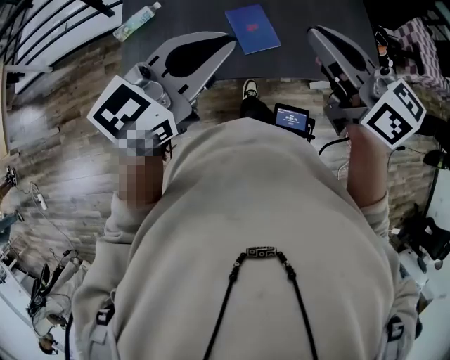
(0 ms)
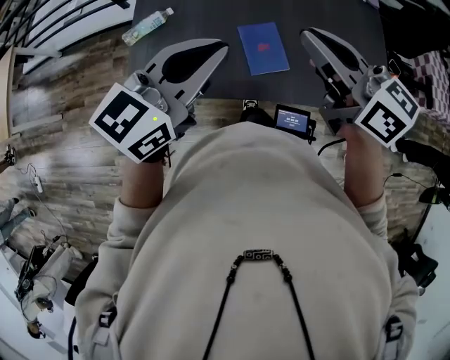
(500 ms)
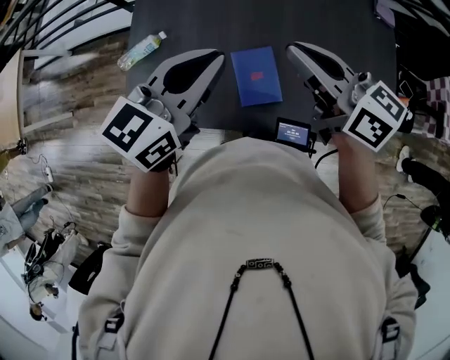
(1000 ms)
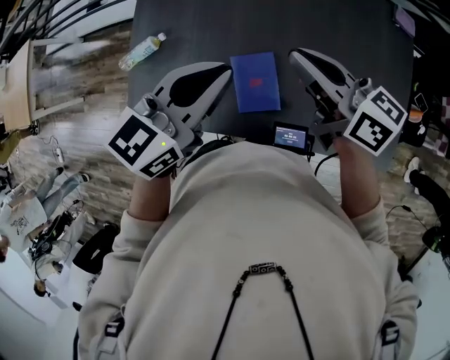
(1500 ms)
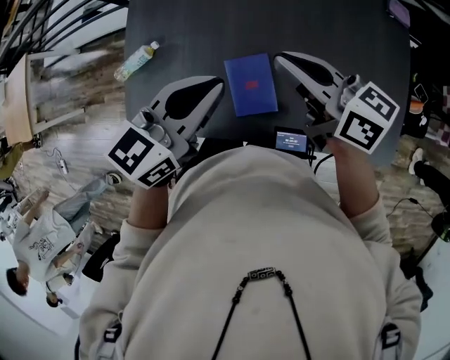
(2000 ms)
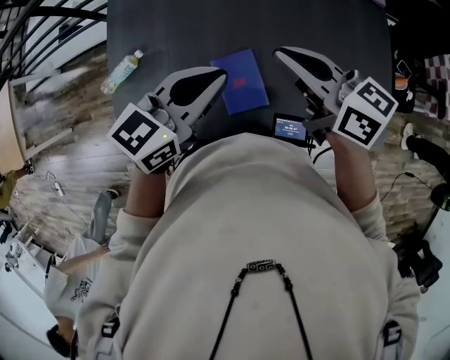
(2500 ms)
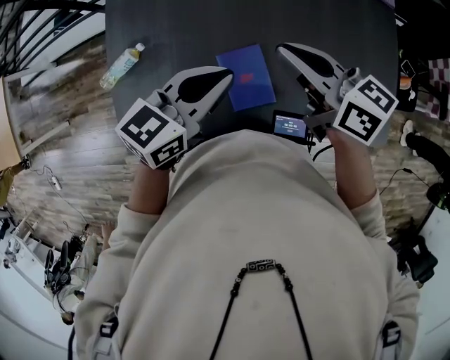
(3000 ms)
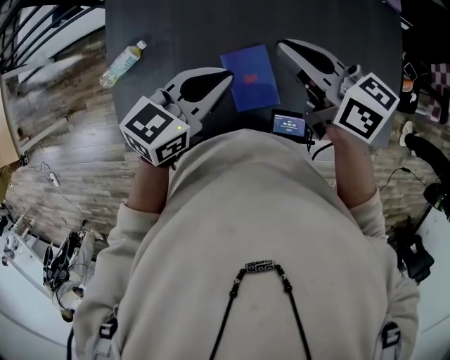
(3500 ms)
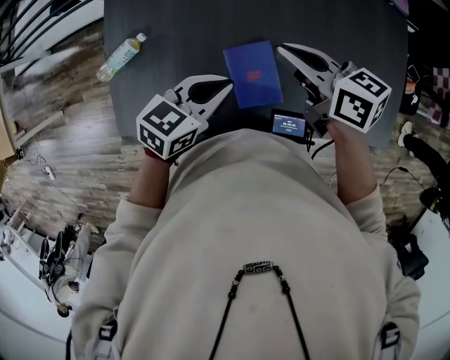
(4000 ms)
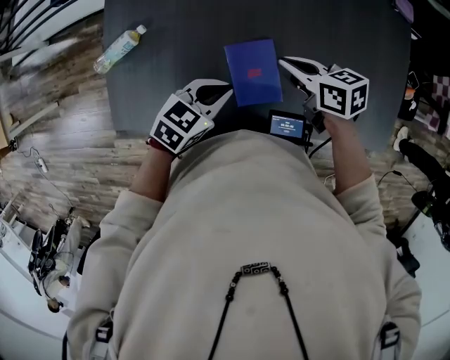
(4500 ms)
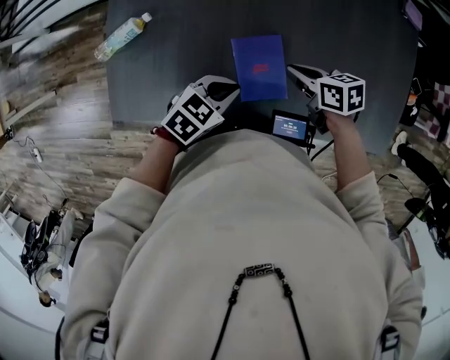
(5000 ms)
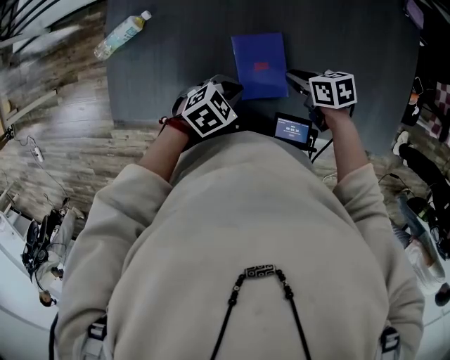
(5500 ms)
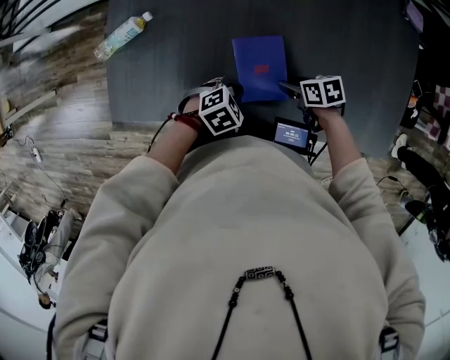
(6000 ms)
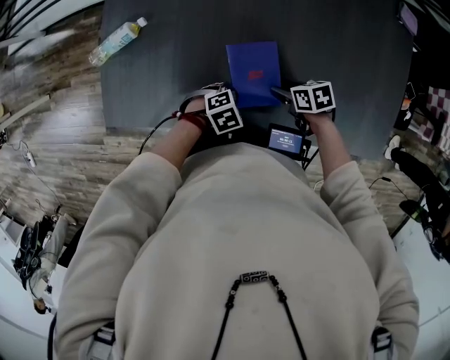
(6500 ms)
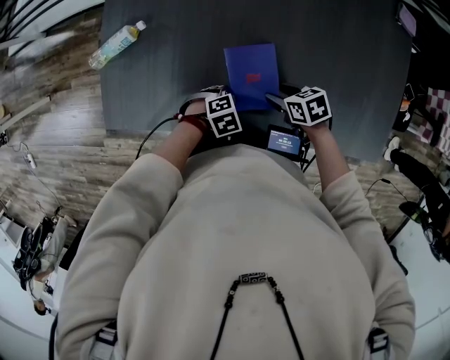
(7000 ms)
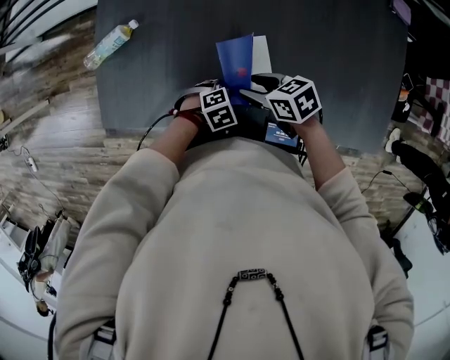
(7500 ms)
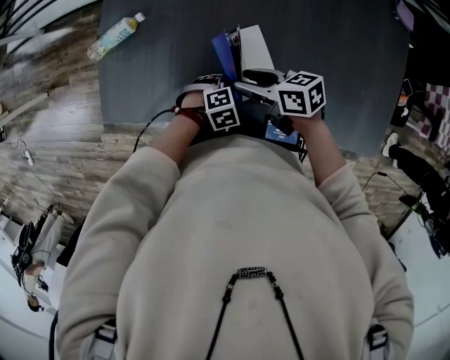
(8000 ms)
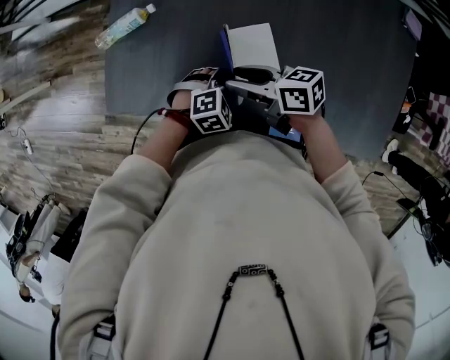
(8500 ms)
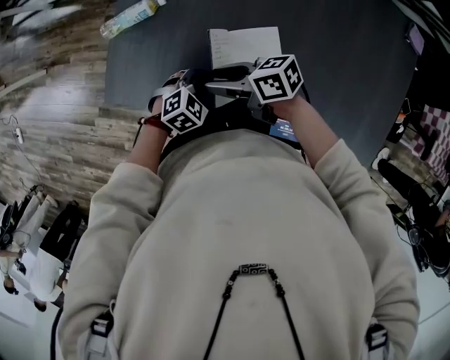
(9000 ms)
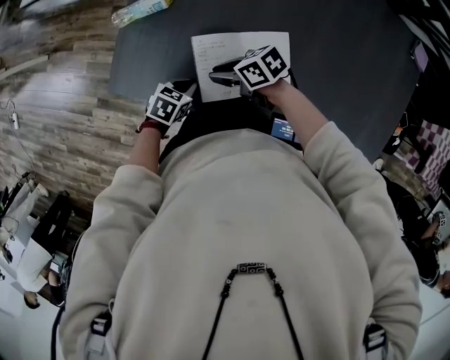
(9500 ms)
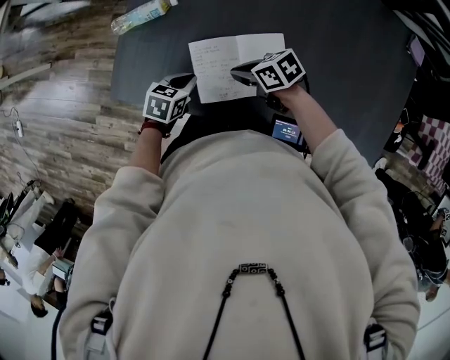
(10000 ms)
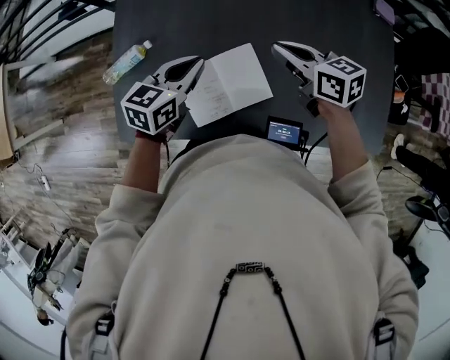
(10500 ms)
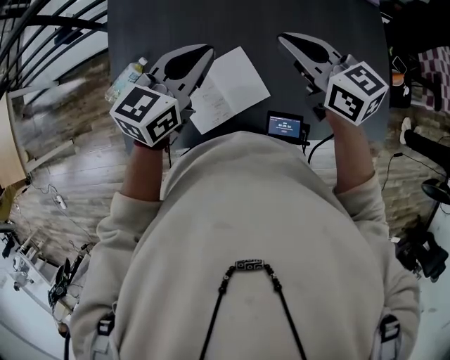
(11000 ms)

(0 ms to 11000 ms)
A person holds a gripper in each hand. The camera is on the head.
0 ms - 2000 ms: The left gripper travels forward, to the right and downward by about 25 cm, and changes its angle by roughly 20 degrees. The right gripper moves forward and downward, roughly 25 cm, and rotates about 30 degrees.
2000 ms - 3500 ms: The left gripper shifts some 10 cm downward.
3500 ms - 5500 ms: The grippers both shift downward by roughly 25 cm. The right gripper tilts its fingers some 30 degrees downward. Meanwhile the left gripper angles its fingers downward, by about 30 degrees.
5500 ms - 7500 ms: The left gripper goes some 10 cm downward, and turns by roughly 20 degrees; the right gripper ends up roughly 10 cm from where it was, and opens up.
7500 ms - 9000 ms: The left gripper shifts by about 15 cm, and changes its angle by approximately 30 degrees, while the right gripper changes place by roughly 15 cm, and turns by some 30 degrees.
9000 ms - 11000 ms: The right gripper changes place by some 30 cm, turns by roughly 60 degrees, and closes, while the left gripper goes roughly 30 cm upward, and tips its fingers upward by about 40 degrees.

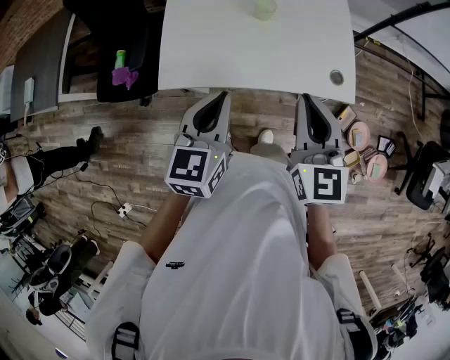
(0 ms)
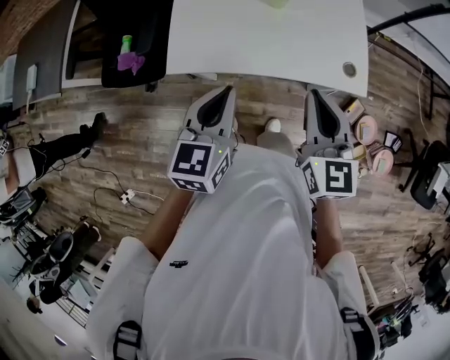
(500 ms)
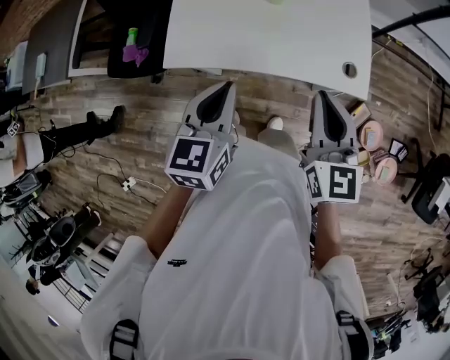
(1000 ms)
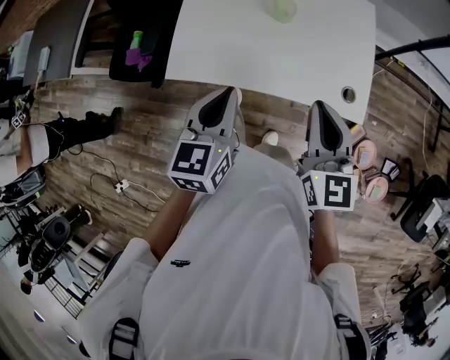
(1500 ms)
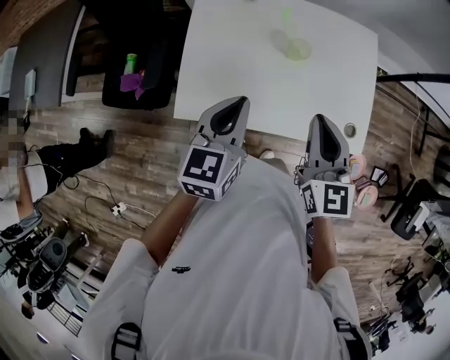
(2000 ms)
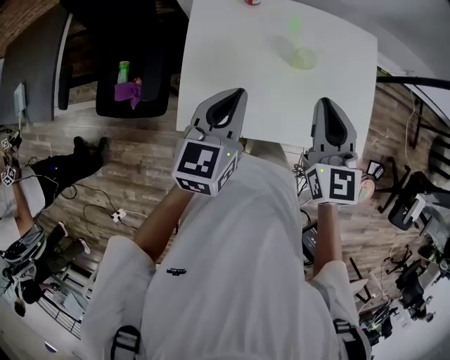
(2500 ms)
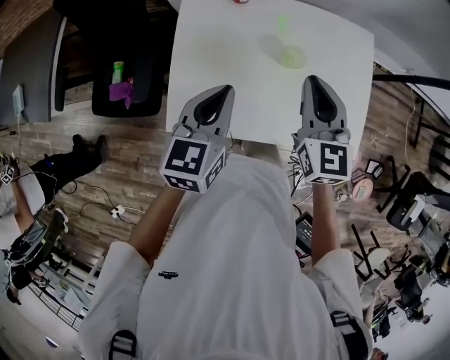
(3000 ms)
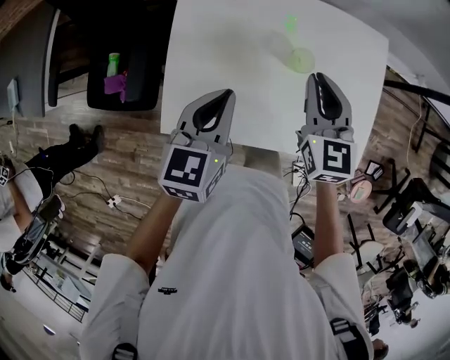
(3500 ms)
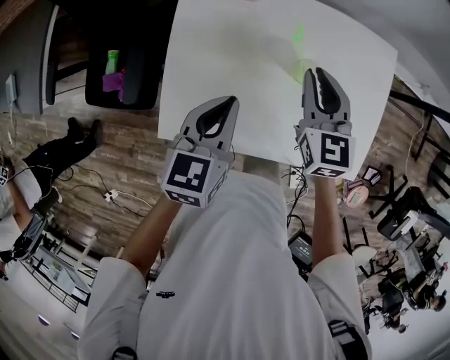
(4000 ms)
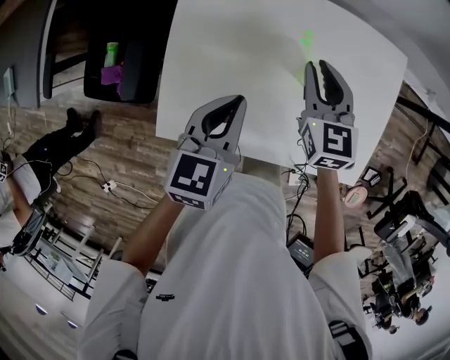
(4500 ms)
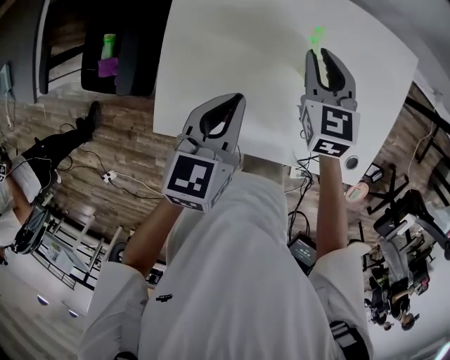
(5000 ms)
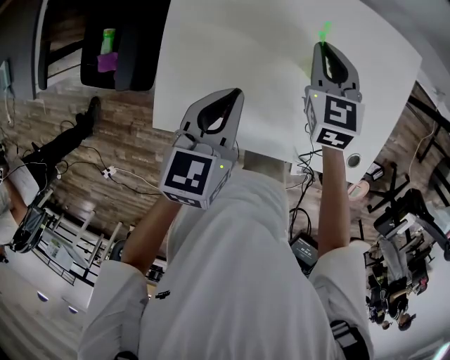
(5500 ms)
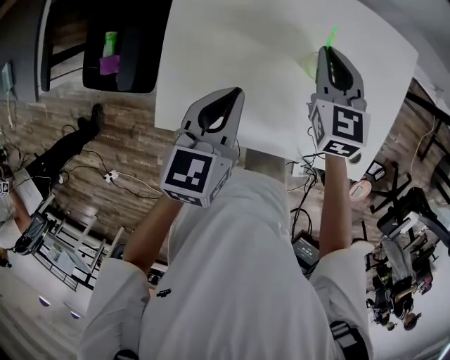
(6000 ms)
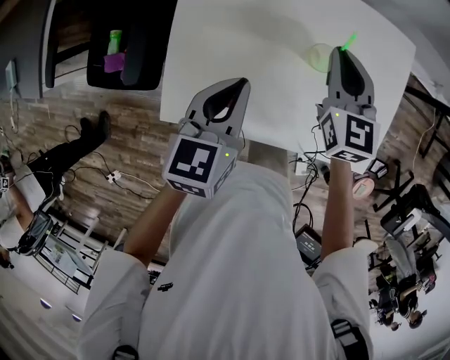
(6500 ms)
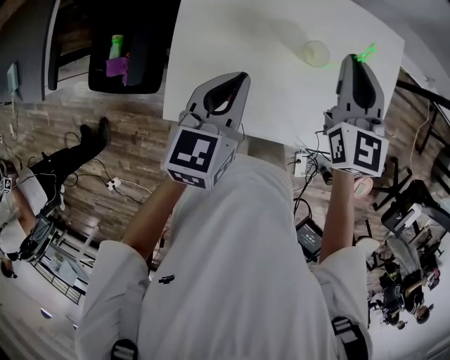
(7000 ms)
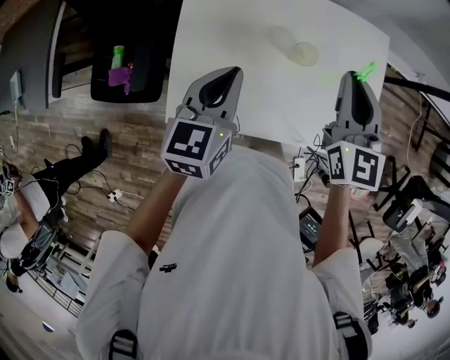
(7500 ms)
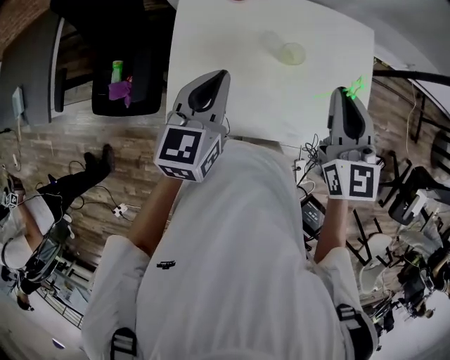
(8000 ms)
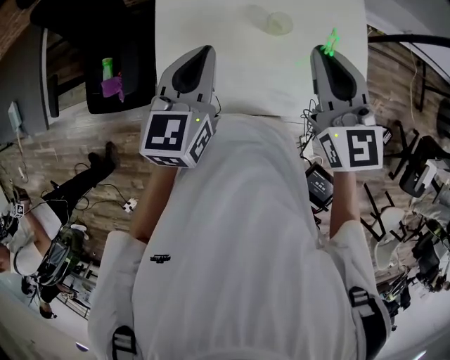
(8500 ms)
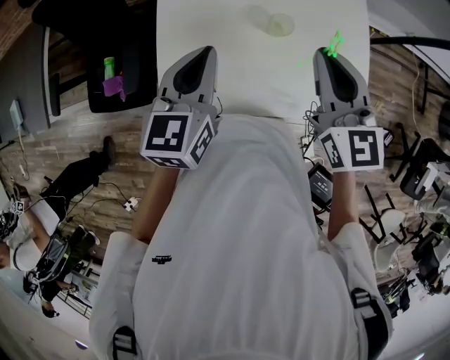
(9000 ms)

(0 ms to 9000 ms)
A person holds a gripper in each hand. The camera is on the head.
0 ms - 2000 ms: The grippers both shift forward by some 15 cm.
2000 ms - 4500 ms: The left gripper heads forward and downward, covering some 15 cm, while the right gripper goes about 30 cm forward and downward.
4500 ms - 7000 ms: The right gripper travels upward by some 10 cm.
7000 ms - 9000 ms: The left gripper travels upward by about 5 cm. Meanwhile the right gripper heads backward and upward, covering approximately 15 cm.

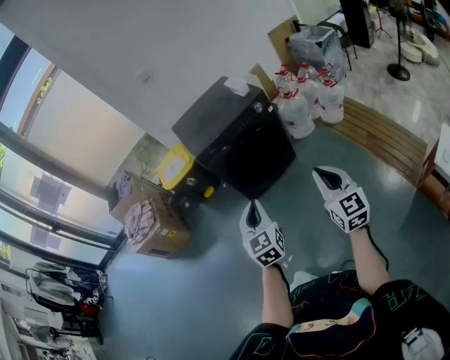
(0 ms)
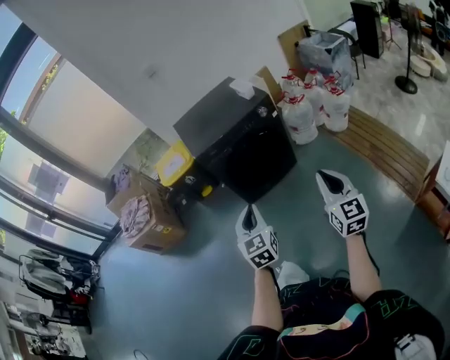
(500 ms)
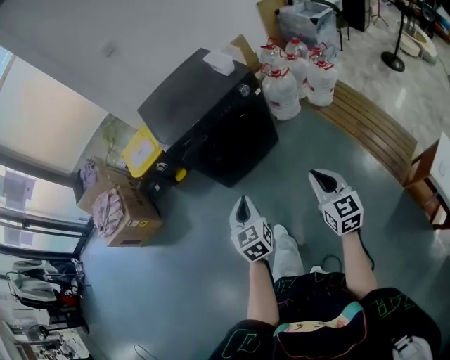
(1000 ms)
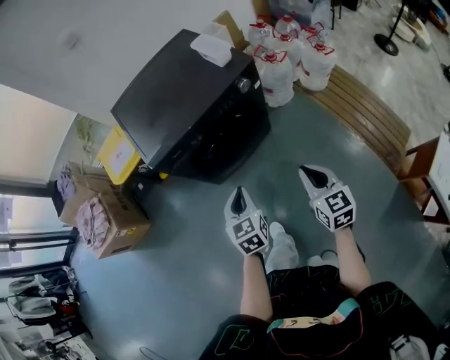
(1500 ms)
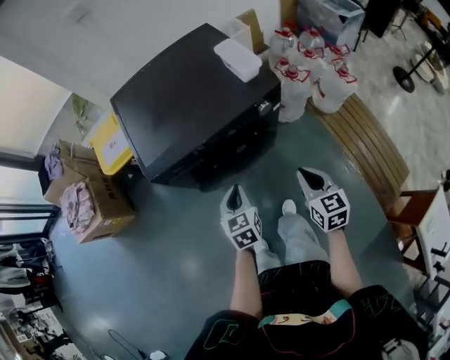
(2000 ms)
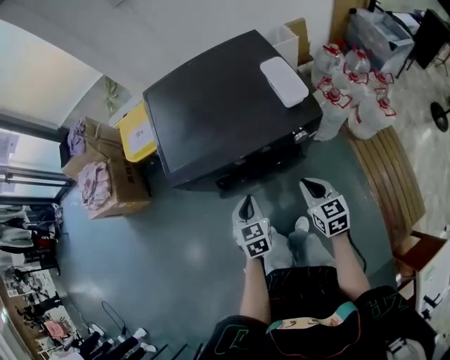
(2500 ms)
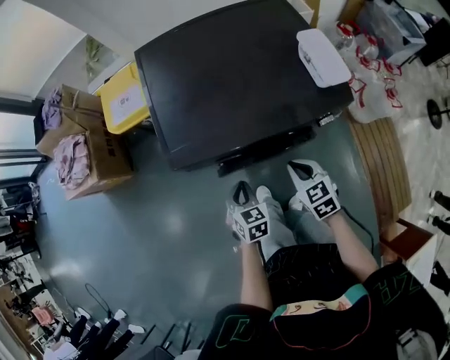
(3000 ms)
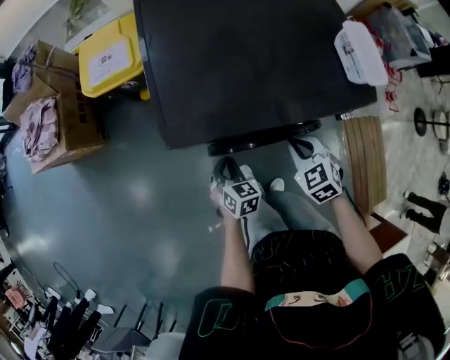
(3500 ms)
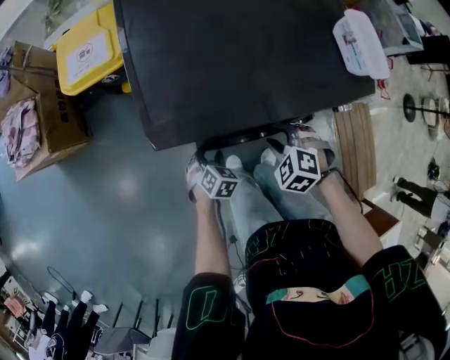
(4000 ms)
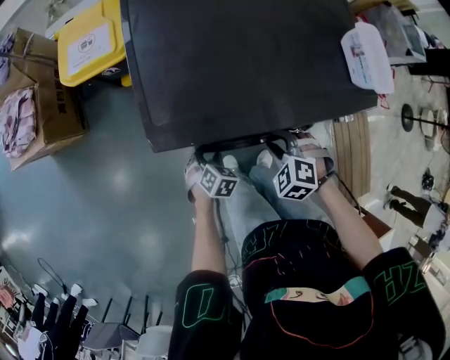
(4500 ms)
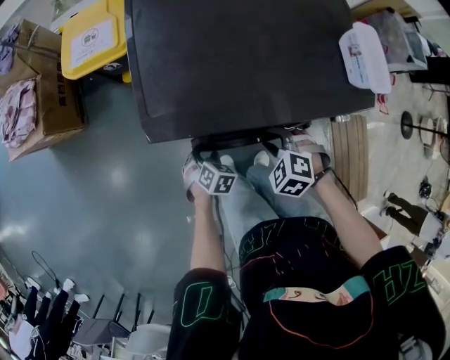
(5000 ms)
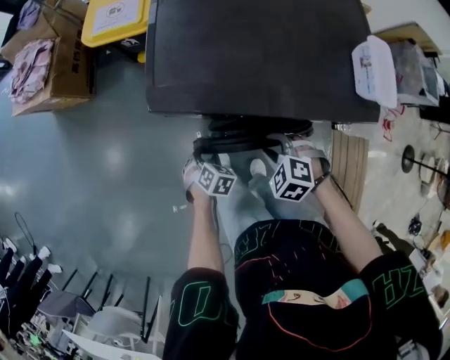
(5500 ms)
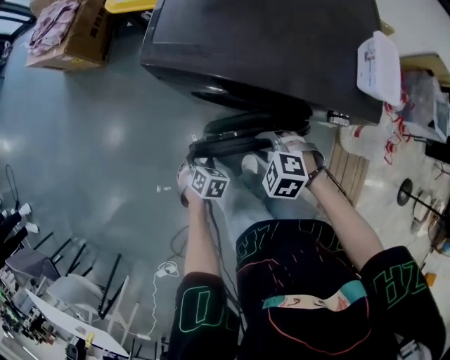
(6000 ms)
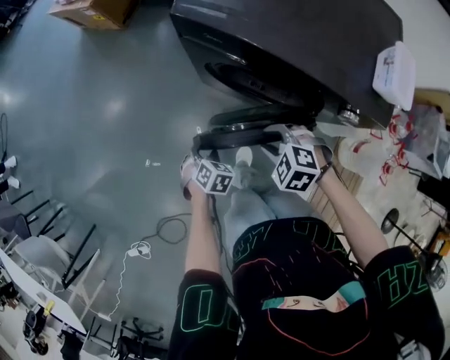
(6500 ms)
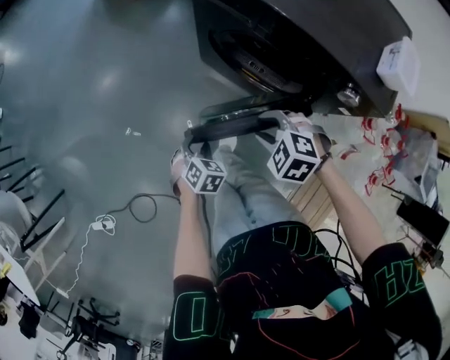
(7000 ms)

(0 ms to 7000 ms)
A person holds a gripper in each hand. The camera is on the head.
0 ms - 2000 ms: Both grippers are carried forward, approximately 40 cm. Both grippers move downward, about 20 cm. The left gripper changes its angle by approximately 30 degrees. Meanwhile the right gripper rotates roughly 30 degrees.
2000 ms - 3500 ms: The left gripper moves downward, to the left and forward, approximately 25 cm, and rotates some 20 degrees, while the right gripper shifts roughly 25 cm forward, to the left and downward, and rolls counterclockwise, seen from behind, by approximately 40 degrees.
3500 ms - 5000 ms: The left gripper shifts approximately 10 cm downward, turns by some 20 degrees, and opens its fingers. The right gripper travels downward by approximately 5 cm, turns by about 30 degrees, and opens up.
5000 ms - 7000 ms: The left gripper moves some 30 cm, and rotates some 40 degrees, while the right gripper moves about 20 cm, and rotates around the line of its fingers by some 40 degrees, counterclockwise from behind.
